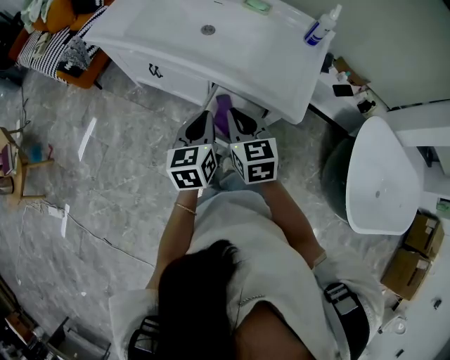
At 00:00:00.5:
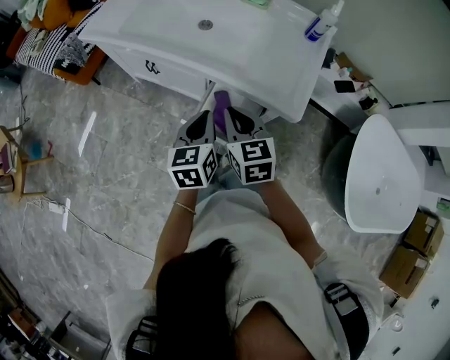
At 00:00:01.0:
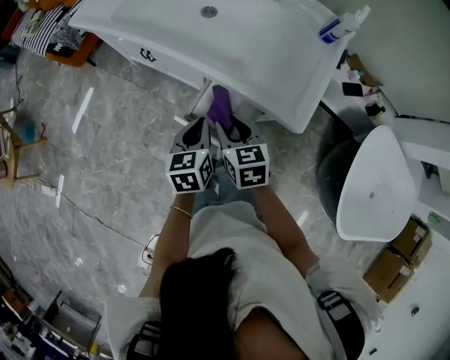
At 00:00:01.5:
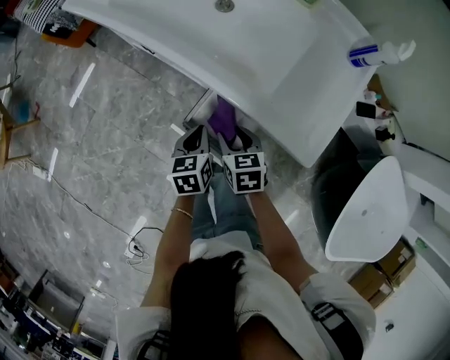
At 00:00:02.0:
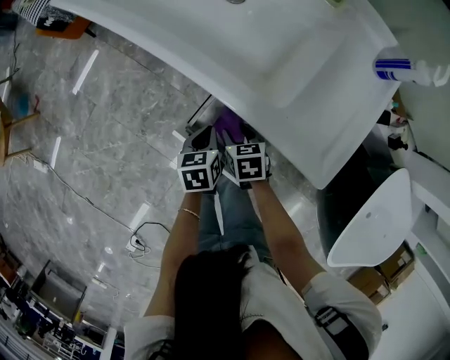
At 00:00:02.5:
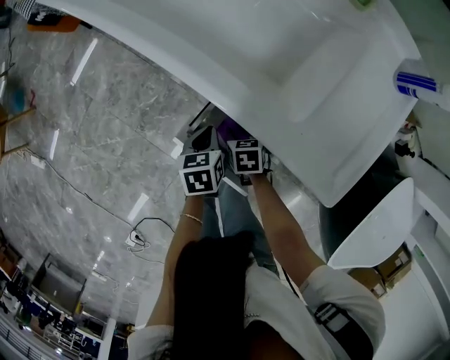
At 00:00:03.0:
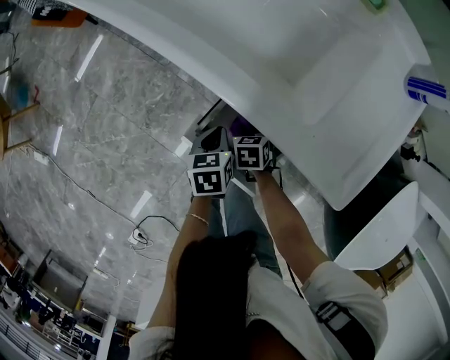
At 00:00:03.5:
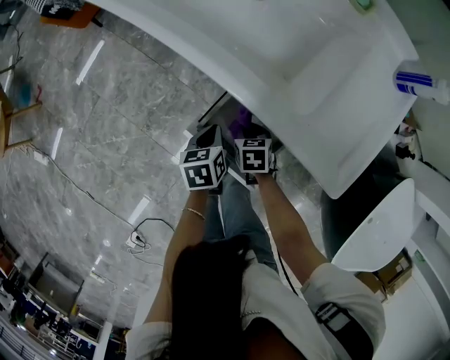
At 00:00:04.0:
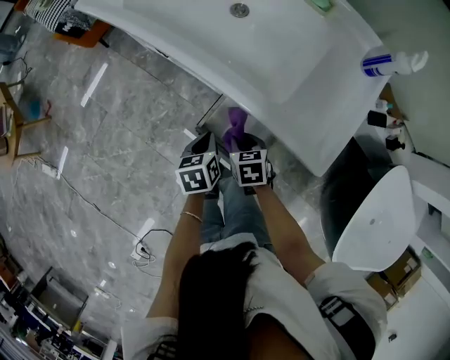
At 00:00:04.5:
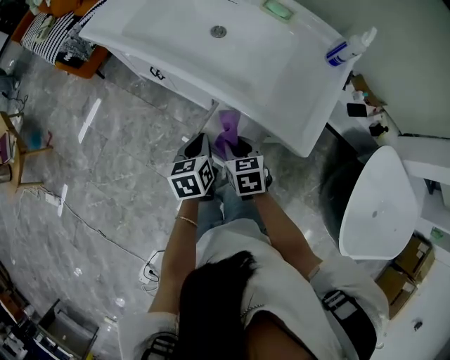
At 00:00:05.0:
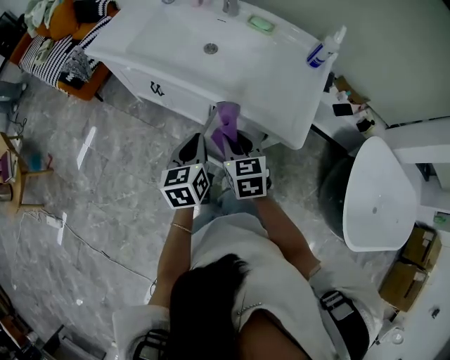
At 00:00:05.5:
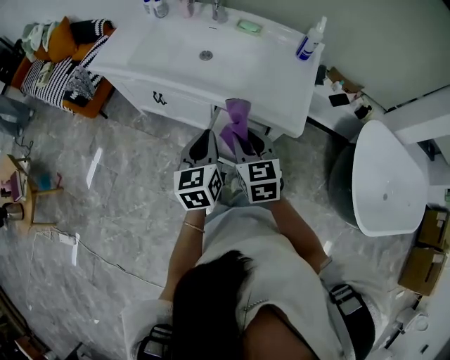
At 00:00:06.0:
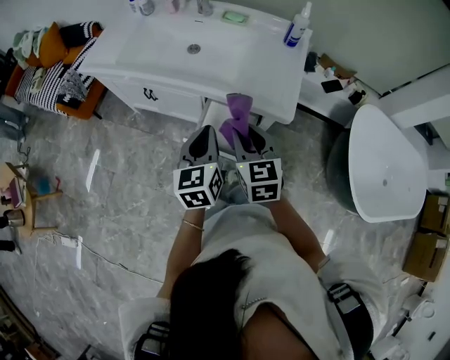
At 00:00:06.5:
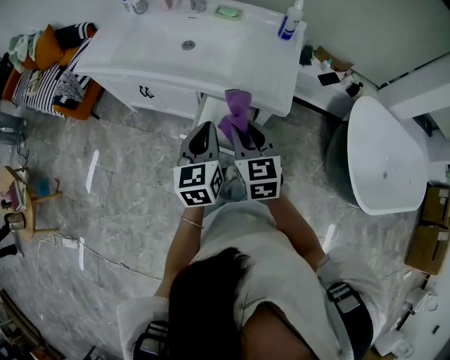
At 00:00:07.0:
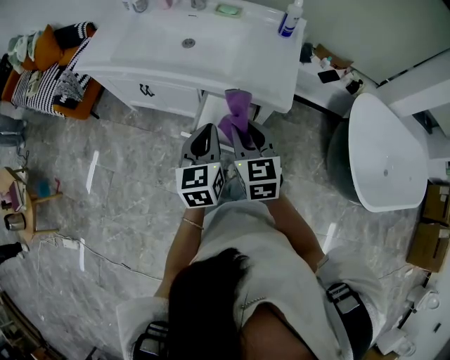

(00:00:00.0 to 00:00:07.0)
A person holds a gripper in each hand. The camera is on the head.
00:00:00.0 - 00:00:02.0: Both grippers travel together downward, approximately 30 cm. The left gripper angles its fingers downward, by about 30 degrees; the right gripper angles its fingers downward, by about 30 degrees, and opens.
00:00:02.0 - 00:00:03.5: The right gripper moves downward, about 5 cm, and closes.
00:00:03.5 - 00:00:05.0: Both grippers travel together upward, approximately 30 cm. The right gripper tilts its fingers some 30 degrees upward. The left gripper changes its angle by about 30 degrees.
00:00:05.0 - 00:00:07.0: The right gripper is displaced backward, upward and to the right by about 10 cm. Meanwhile the left gripper is displaced backward, to the right and upward by some 10 cm.

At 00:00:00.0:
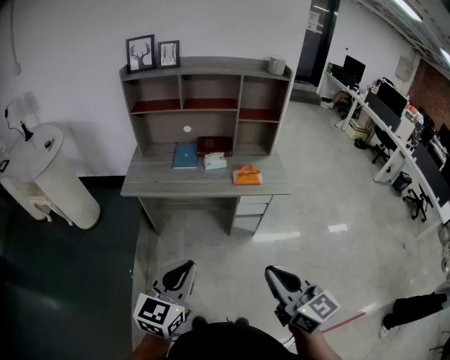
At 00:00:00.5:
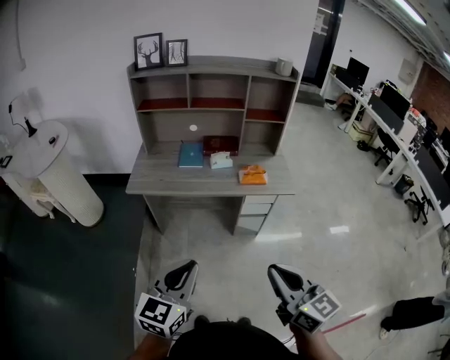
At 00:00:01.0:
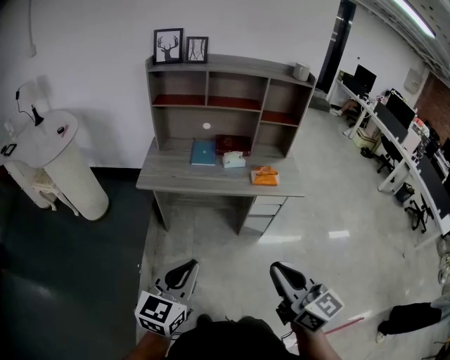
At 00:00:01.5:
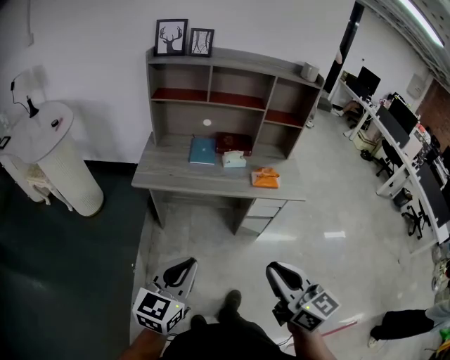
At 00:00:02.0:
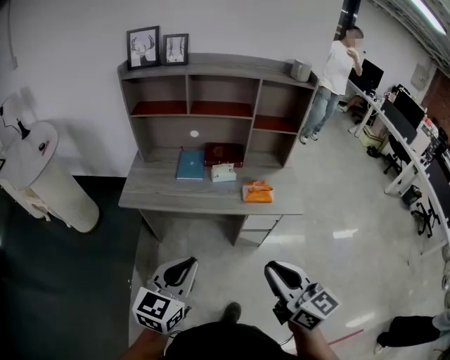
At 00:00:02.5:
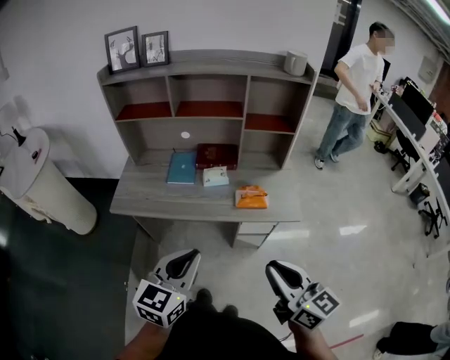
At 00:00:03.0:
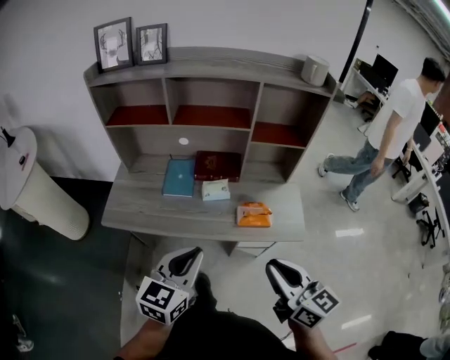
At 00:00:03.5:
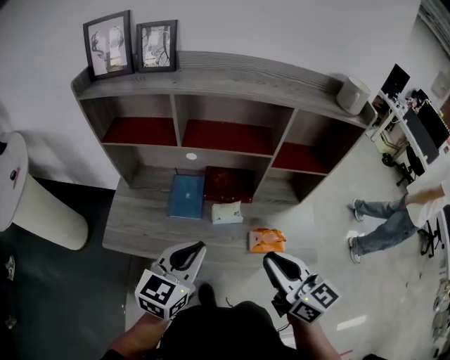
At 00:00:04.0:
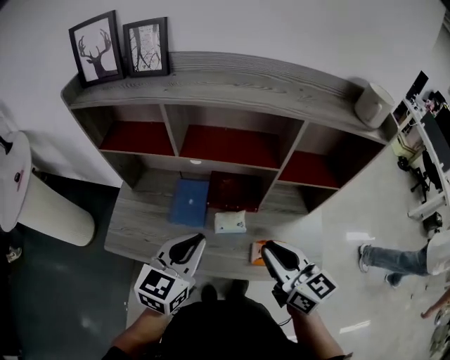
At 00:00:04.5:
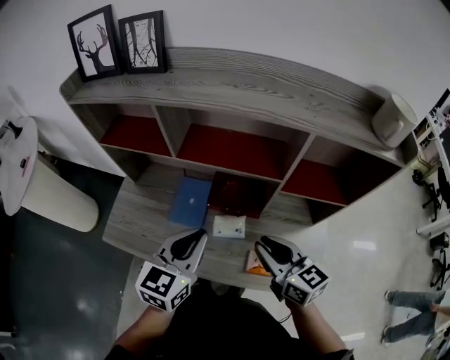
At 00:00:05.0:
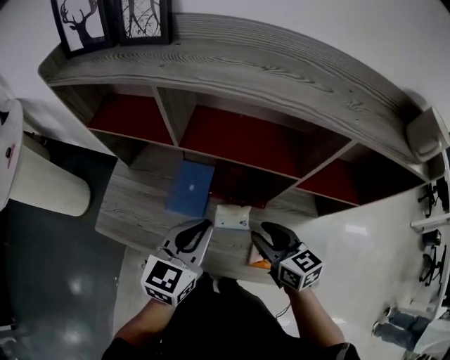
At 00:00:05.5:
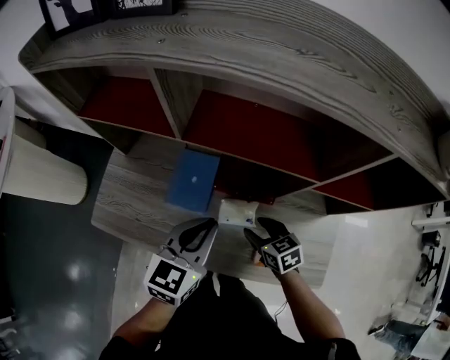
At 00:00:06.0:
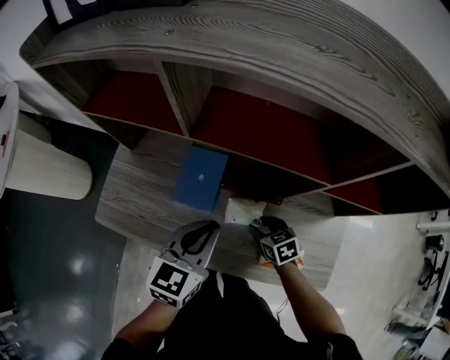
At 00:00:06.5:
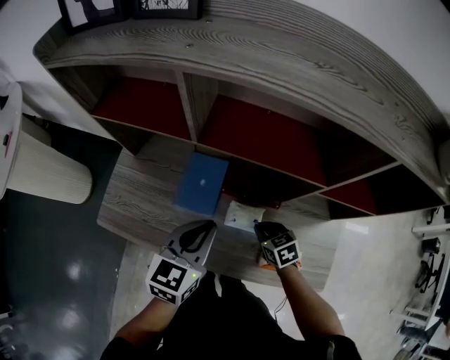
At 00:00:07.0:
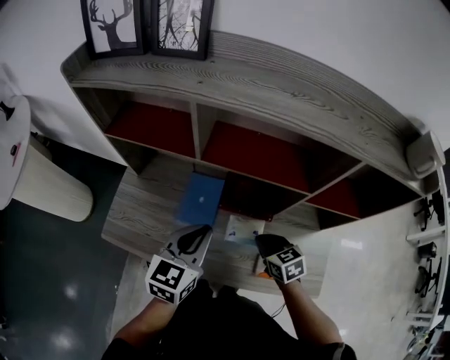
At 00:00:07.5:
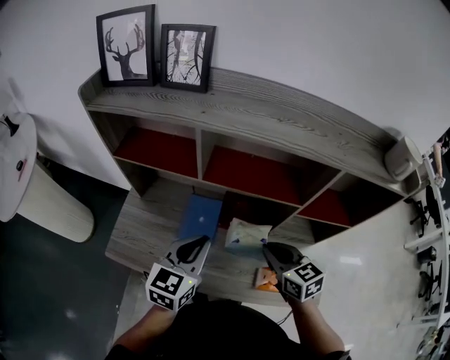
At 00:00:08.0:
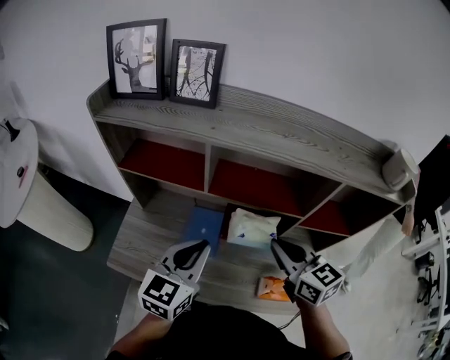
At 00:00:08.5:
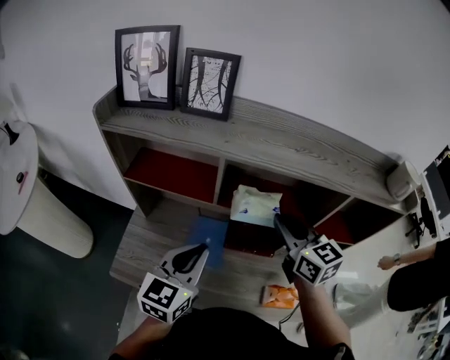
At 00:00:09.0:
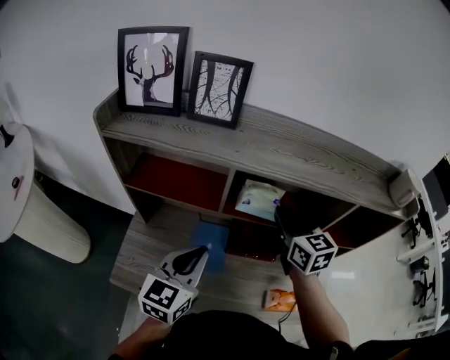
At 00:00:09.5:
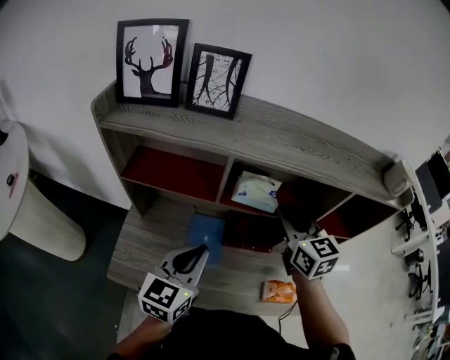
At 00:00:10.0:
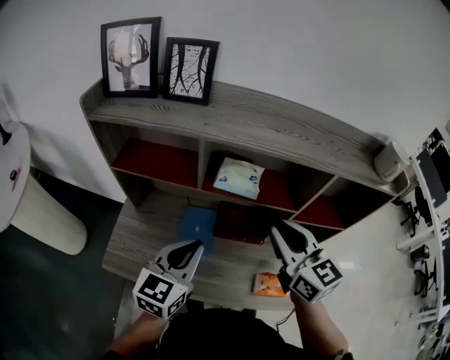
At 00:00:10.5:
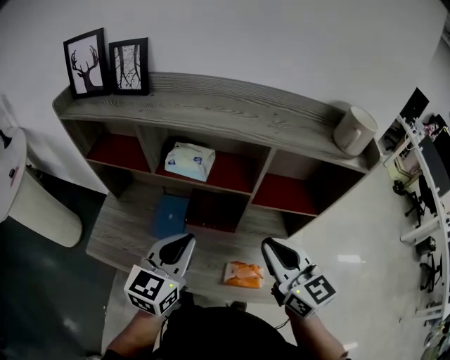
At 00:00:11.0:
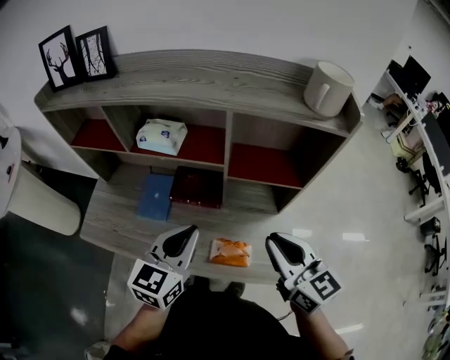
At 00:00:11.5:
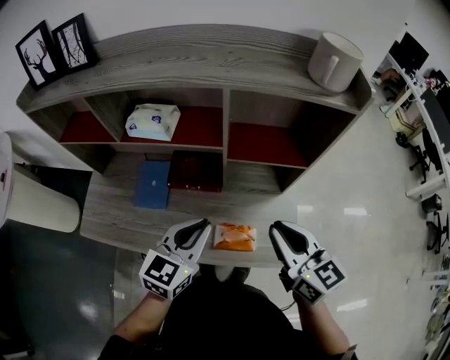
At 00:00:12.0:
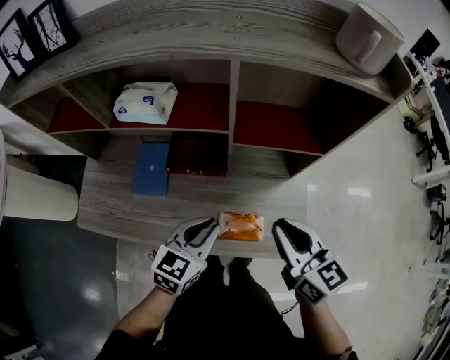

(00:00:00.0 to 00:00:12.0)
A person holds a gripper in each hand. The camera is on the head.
00:00:00.0 - 00:00:02.0: The grippers both shift forward by about 15 cm.
00:00:02.0 - 00:00:04.0: The two grippers travel together, forward, about 40 cm.
00:00:04.0 - 00:00:06.0: The right gripper heads downward, covering approximately 30 cm, points its fingers about 40 degrees further downward, and opens its fingers. The left gripper shifts approximately 15 cm downward and forward.
00:00:06.0 - 00:00:08.0: The left gripper is displaced upward and to the left by approximately 15 cm; the right gripper moves upward, approximately 35 cm, tilts its fingers some 30 degrees upward, and closes up.
00:00:08.0 - 00:00:10.0: The right gripper goes roughly 5 cm upward, and moves approximately 15 cm forward and comes back.
00:00:10.0 - 00:00:12.0: The right gripper heads to the right, downward and backward, covering some 25 cm; the left gripper heads to the right and downward, covering approximately 30 cm, and turns by about 20 degrees.

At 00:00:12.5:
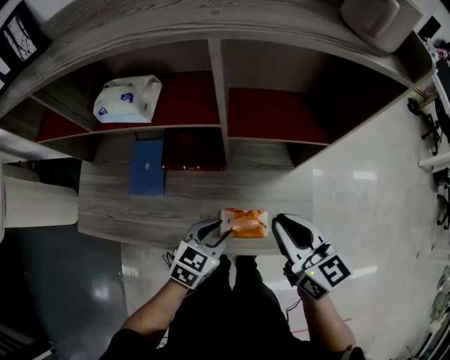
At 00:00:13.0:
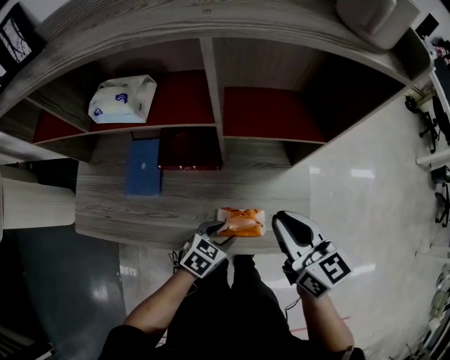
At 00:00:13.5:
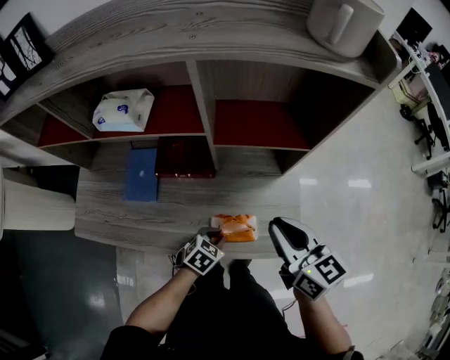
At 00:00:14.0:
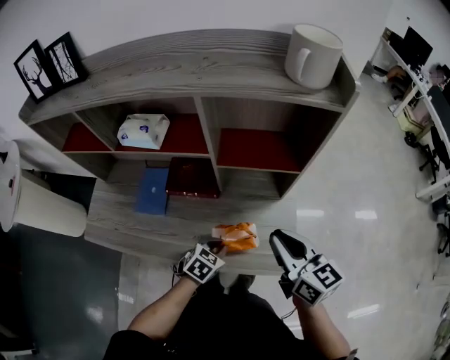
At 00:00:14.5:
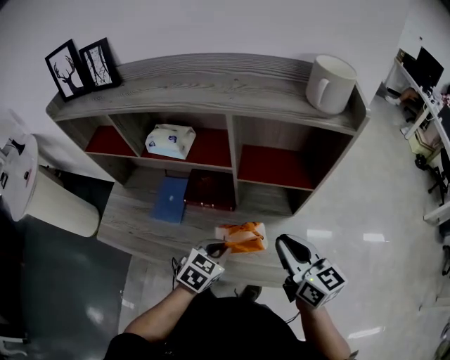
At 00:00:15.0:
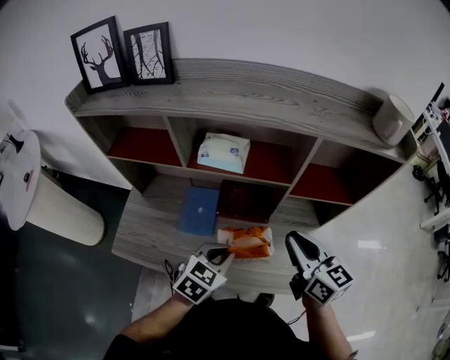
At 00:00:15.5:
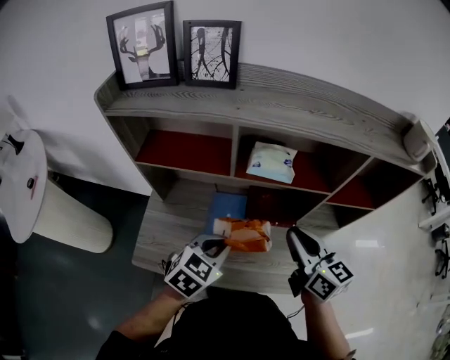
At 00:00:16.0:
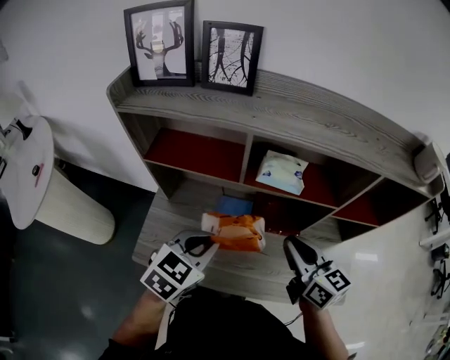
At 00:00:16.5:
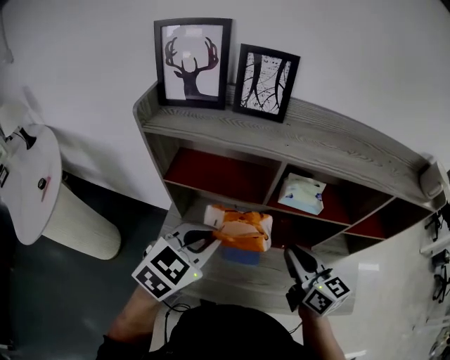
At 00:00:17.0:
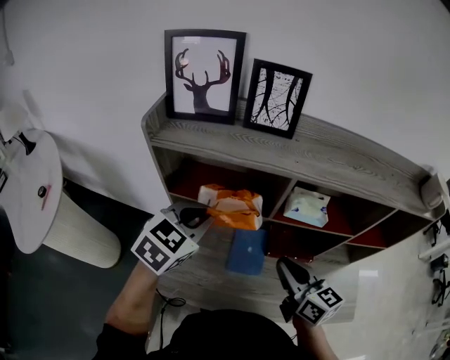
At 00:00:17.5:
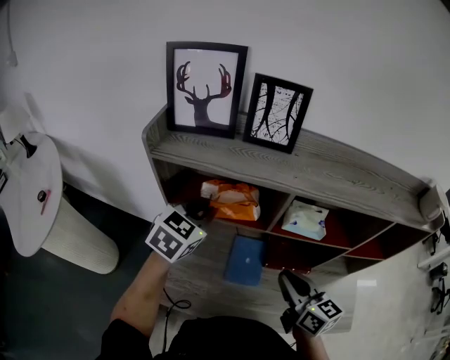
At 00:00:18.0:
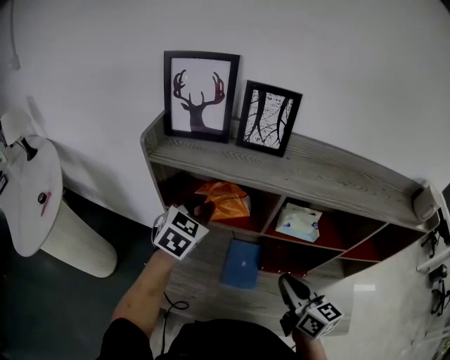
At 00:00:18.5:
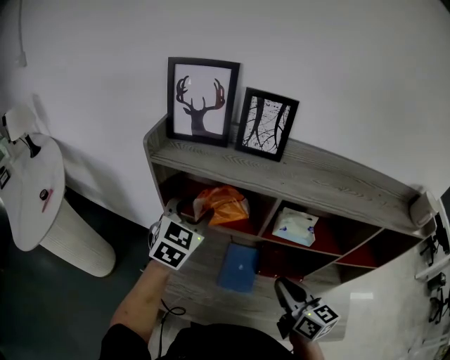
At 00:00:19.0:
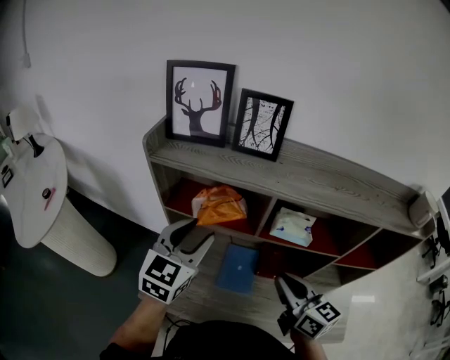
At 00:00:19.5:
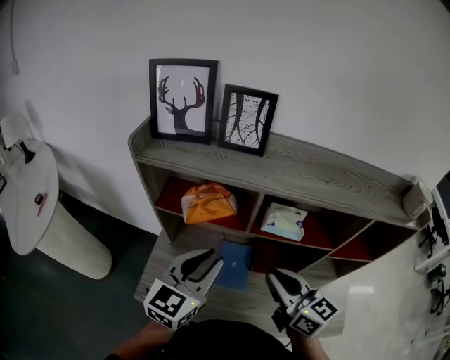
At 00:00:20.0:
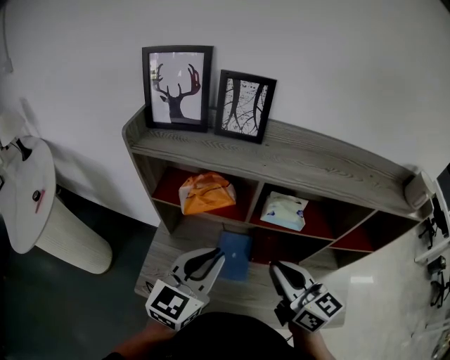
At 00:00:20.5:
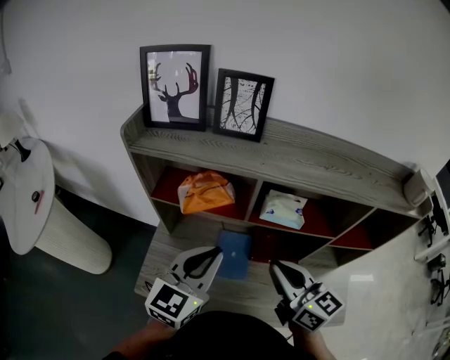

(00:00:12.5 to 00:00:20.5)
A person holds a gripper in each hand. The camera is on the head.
00:00:12.5 - 00:00:14.5: Both grippers move upward, some 5 cm. The left gripper closes up.
00:00:14.5 - 00:00:16.5: The left gripper shifts about 50 cm to the left and upward. Meanwhile the right gripper shifts approximately 35 cm to the left.
00:00:16.5 - 00:00:18.5: The left gripper travels forward by roughly 15 cm, rotates some 30 degrees, and opens up.
00:00:18.5 - 00:00:20.5: The left gripper shifts some 20 cm backward and to the right, turns by some 30 degrees, and closes up; the right gripper moves upward, approximately 5 cm.
